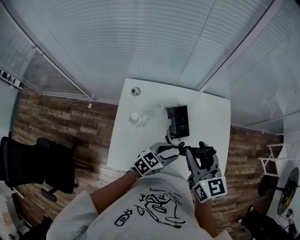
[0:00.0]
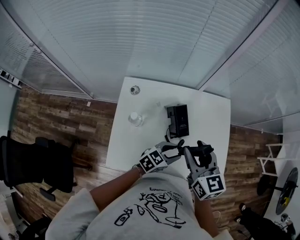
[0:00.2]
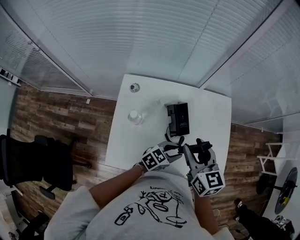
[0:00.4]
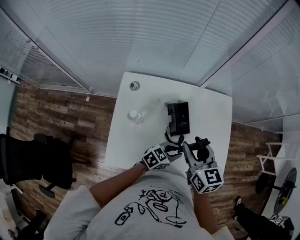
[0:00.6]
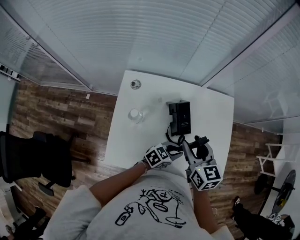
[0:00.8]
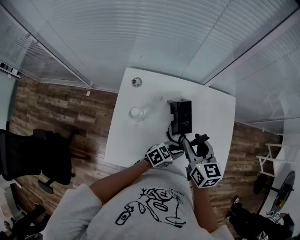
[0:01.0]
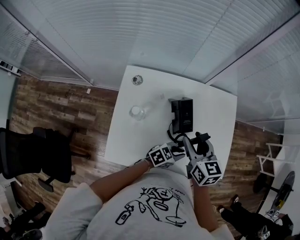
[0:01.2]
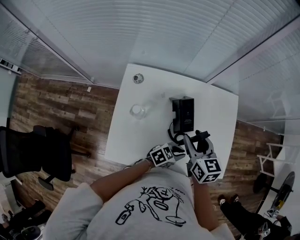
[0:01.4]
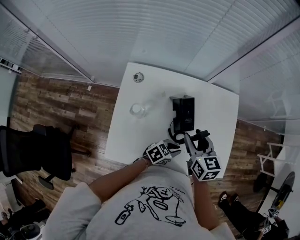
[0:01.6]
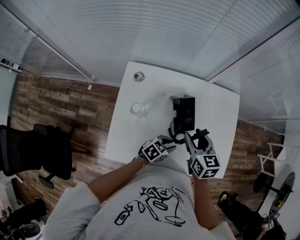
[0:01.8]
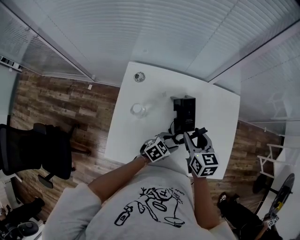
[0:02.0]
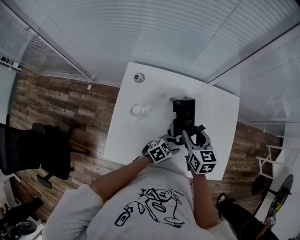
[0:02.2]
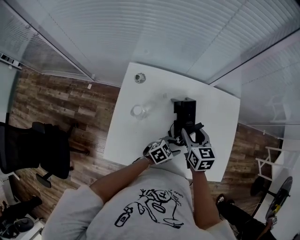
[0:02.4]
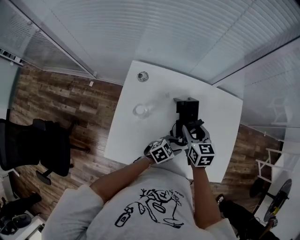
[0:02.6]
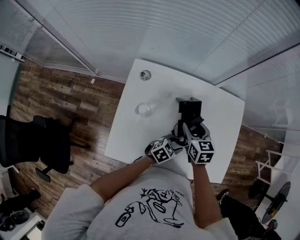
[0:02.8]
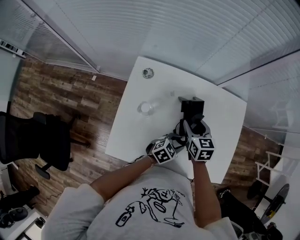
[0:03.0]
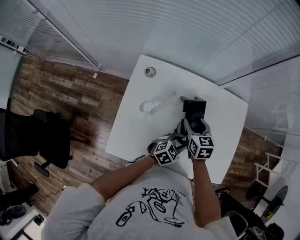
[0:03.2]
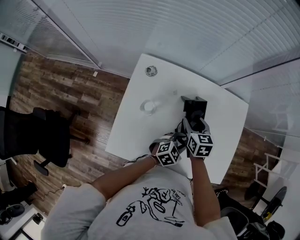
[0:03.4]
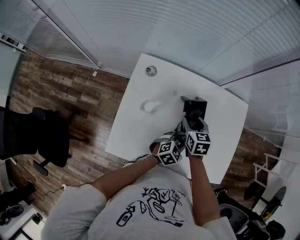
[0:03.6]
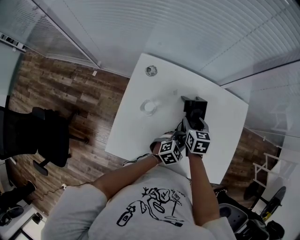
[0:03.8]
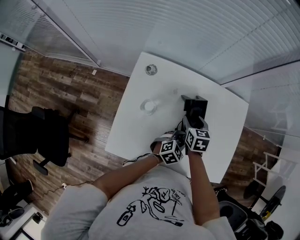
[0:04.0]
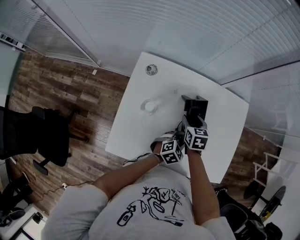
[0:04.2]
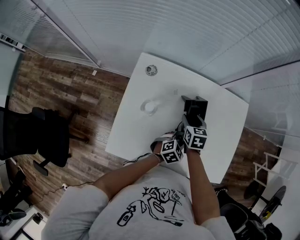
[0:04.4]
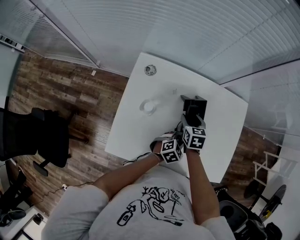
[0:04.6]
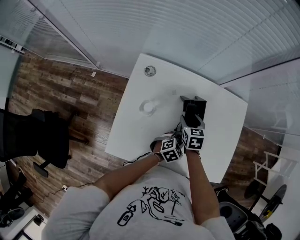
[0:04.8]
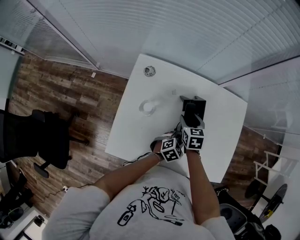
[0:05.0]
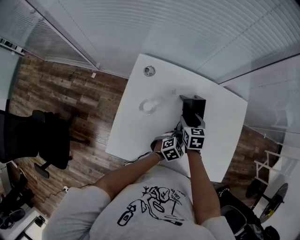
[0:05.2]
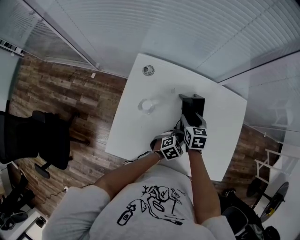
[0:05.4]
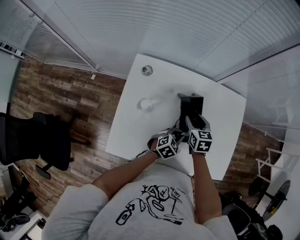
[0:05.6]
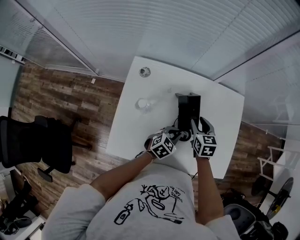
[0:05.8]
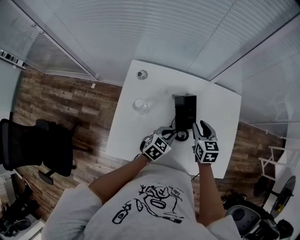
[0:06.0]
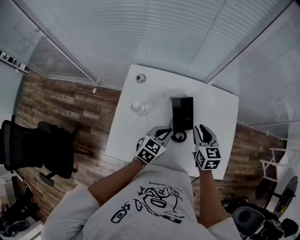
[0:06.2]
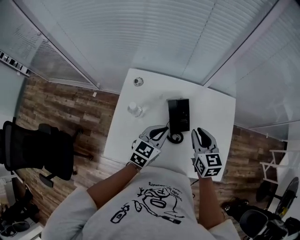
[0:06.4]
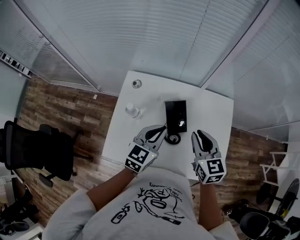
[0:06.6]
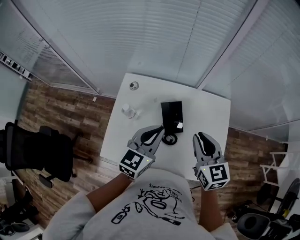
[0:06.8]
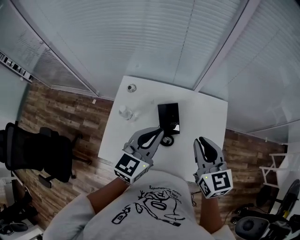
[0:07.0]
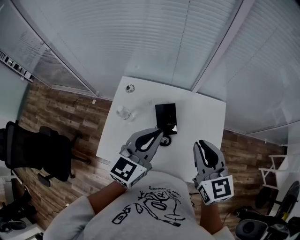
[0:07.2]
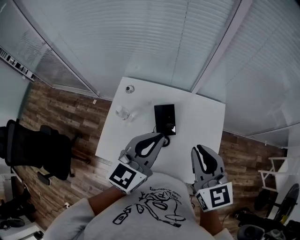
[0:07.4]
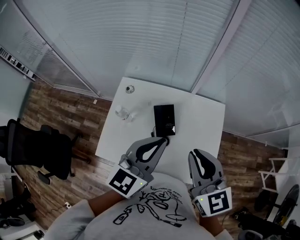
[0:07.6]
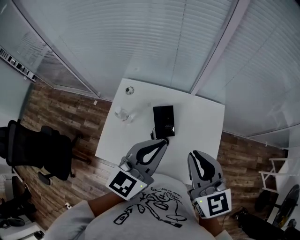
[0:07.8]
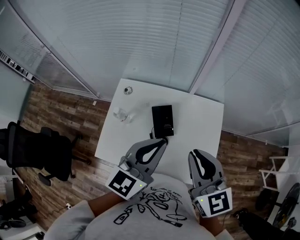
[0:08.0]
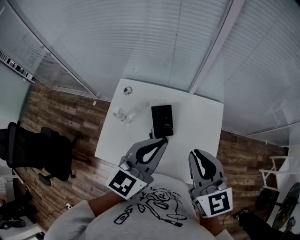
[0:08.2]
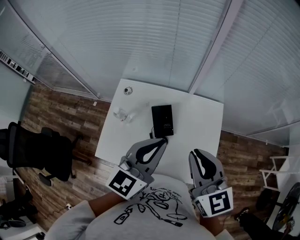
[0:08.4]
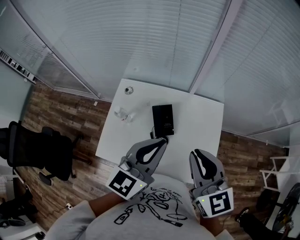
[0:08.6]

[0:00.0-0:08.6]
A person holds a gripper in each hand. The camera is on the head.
0:00.0 to 0:01.4: The left gripper shifts about 10 cm downward and to the right, and closes up, while the right gripper shifts roughly 10 cm downward.
0:01.4 to 0:02.8: The right gripper is displaced downward by approximately 10 cm. The left gripper heads to the left, covering roughly 5 cm, and opens its fingers.
0:02.8 to 0:04.4: The left gripper closes its fingers. The right gripper is displaced downward by about 5 cm.
0:04.4 to 0:05.8: The right gripper moves to the right, approximately 5 cm.
0:05.8 to 0:07.2: Both grippers travel together upward, about 30 cm. The left gripper points its fingers approximately 30 degrees further upward, while the right gripper changes its angle by approximately 30 degrees, and closes its fingers.
0:07.2 to 0:08.6: The grippers both shift upward by some 5 cm.

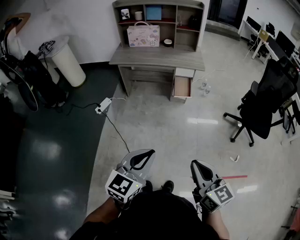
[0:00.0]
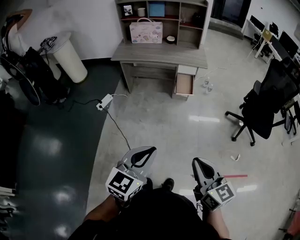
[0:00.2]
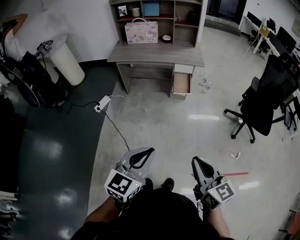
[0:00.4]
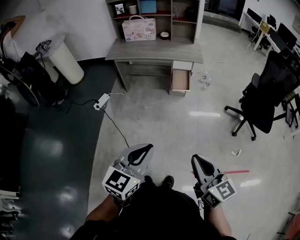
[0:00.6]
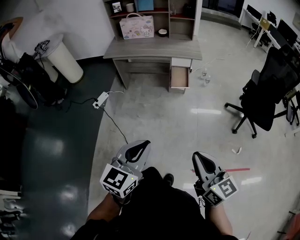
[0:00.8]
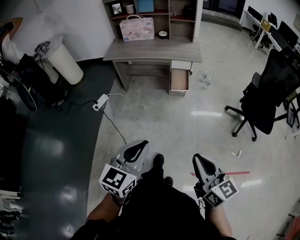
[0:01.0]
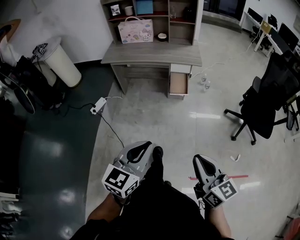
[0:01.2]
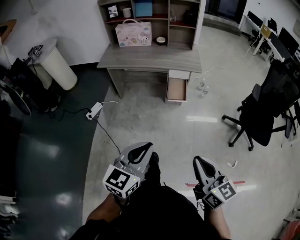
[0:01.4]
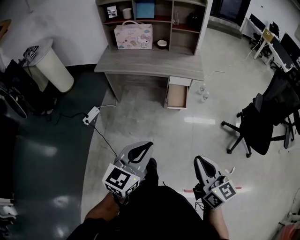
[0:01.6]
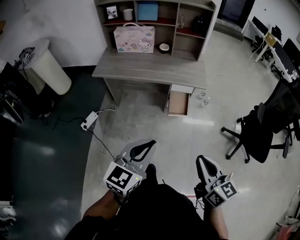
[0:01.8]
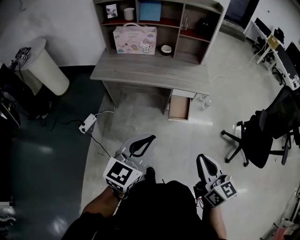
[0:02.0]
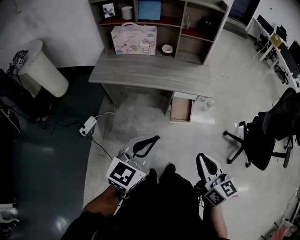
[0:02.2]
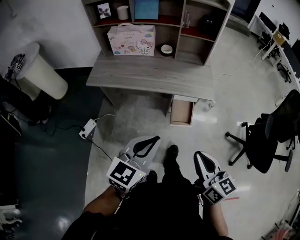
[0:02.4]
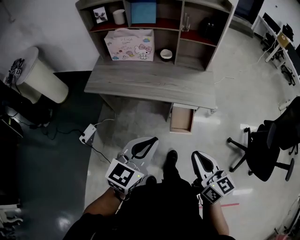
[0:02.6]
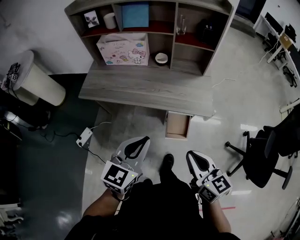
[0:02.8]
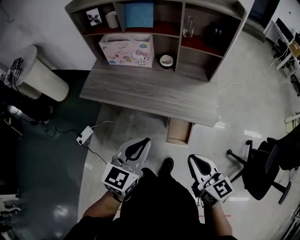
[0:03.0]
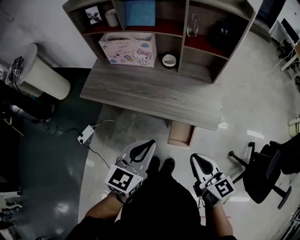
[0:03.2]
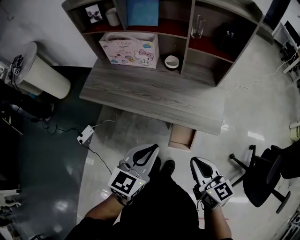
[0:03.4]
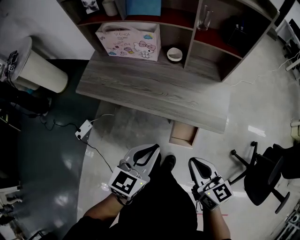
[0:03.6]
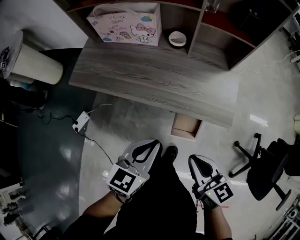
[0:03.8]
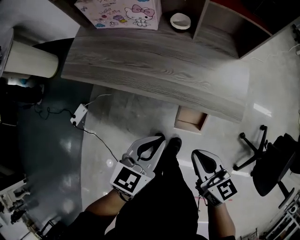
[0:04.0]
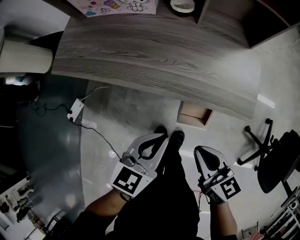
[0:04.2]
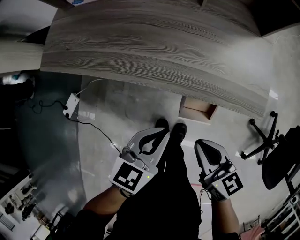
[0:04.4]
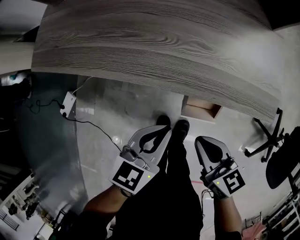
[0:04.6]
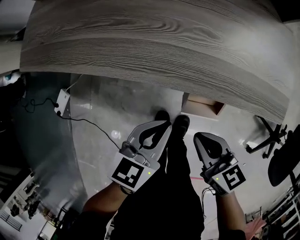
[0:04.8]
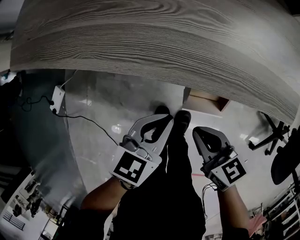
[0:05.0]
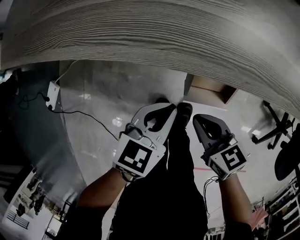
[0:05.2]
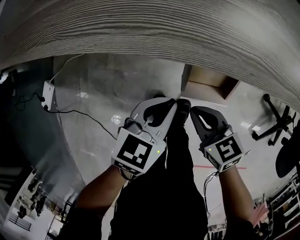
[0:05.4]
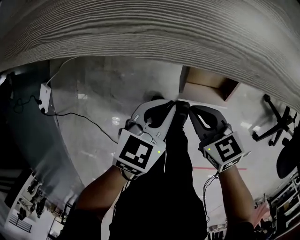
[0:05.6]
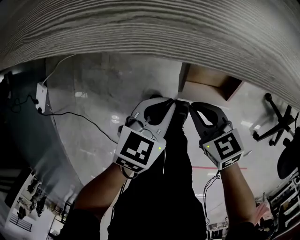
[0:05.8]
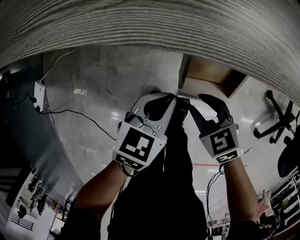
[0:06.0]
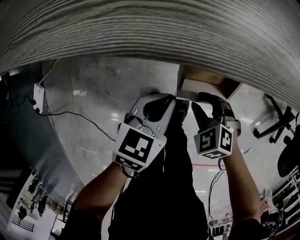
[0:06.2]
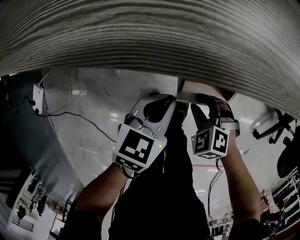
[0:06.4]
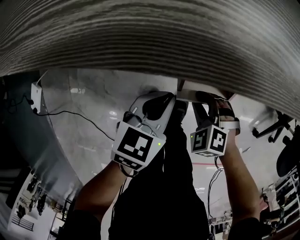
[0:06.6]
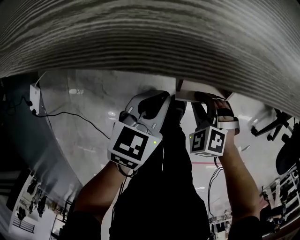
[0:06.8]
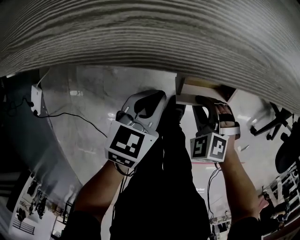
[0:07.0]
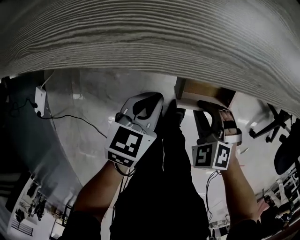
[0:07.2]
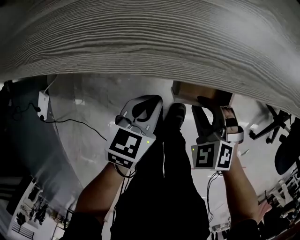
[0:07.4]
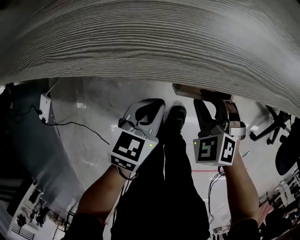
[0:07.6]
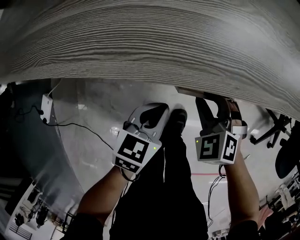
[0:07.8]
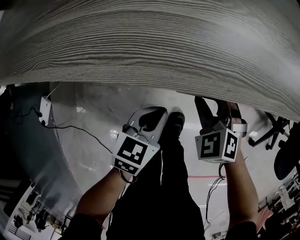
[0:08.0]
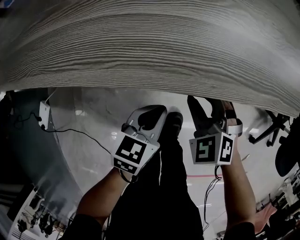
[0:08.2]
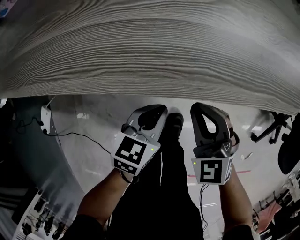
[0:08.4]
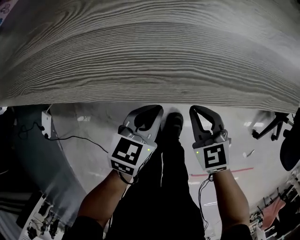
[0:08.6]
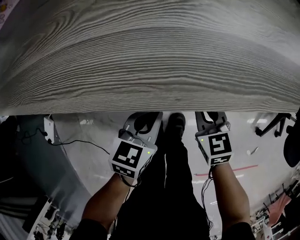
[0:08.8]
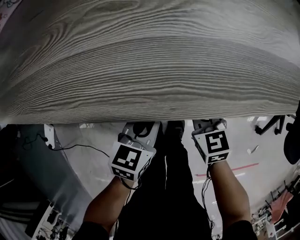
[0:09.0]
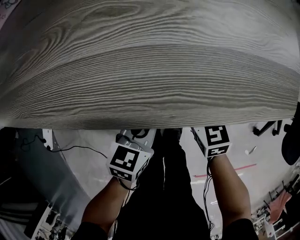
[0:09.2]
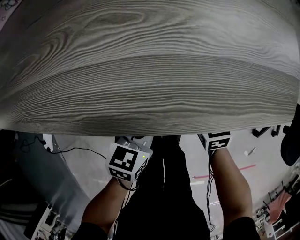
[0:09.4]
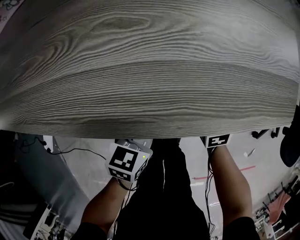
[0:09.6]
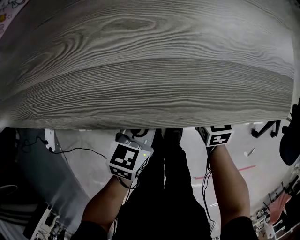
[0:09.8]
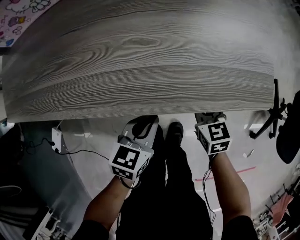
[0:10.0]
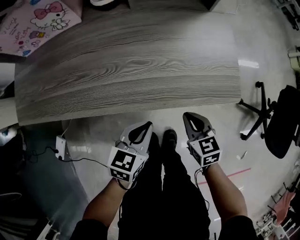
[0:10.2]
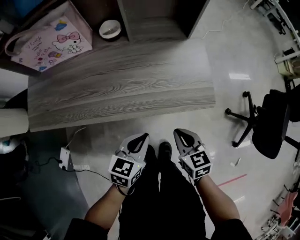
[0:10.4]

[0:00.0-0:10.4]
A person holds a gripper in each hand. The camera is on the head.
0:00.0 to 0:01.4: The right gripper travels forward and to the right by some 15 cm. The left gripper heads forward, covering some 15 cm.
0:01.4 to 0:03.0: Both grippers are carried forward, roughly 50 cm.
0:03.0 to 0:04.4: The left gripper is displaced downward by roughly 30 cm, and turns by about 20 degrees. Meanwhile the right gripper heads downward and forward, covering about 30 cm.
0:04.4 to 0:06.0: Both grippers move downward, roughly 30 cm. The right gripper swivels about 30 degrees, and opens up.
0:06.0 to 0:07.4: The right gripper shifts roughly 5 cm upward, and changes its angle by about 30 degrees; the left gripper moves about 5 cm.
0:07.4 to 0:09.0: The left gripper is displaced to the right by some 5 cm, while the right gripper travels forward and to the right by some 5 cm, rolls clockwise, seen from behind, by approximately 50 degrees, and closes up.
0:09.0 to 0:10.4: The grippers both shift upward by roughly 25 cm.

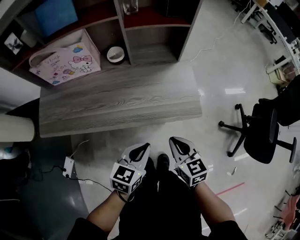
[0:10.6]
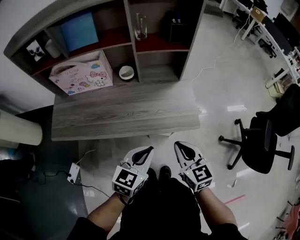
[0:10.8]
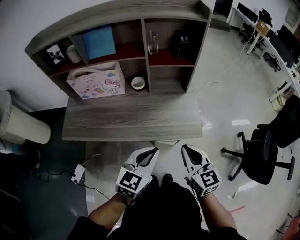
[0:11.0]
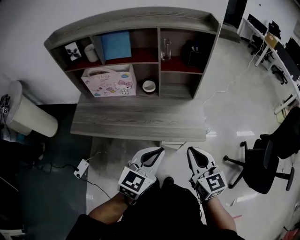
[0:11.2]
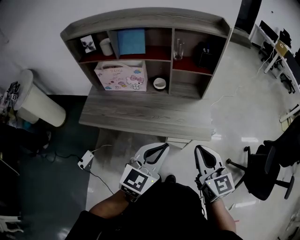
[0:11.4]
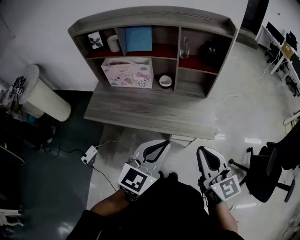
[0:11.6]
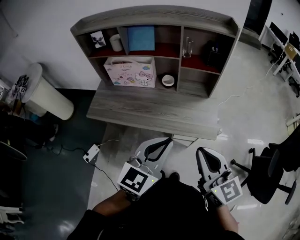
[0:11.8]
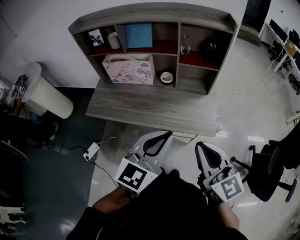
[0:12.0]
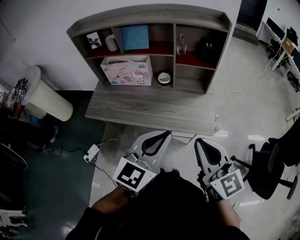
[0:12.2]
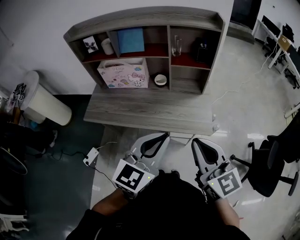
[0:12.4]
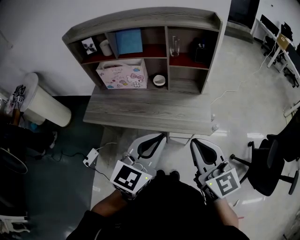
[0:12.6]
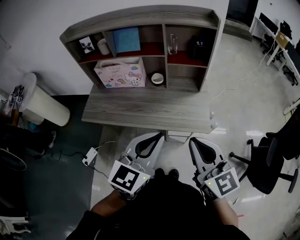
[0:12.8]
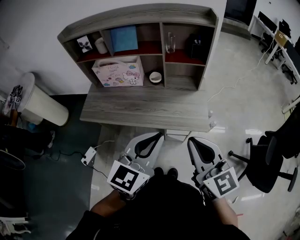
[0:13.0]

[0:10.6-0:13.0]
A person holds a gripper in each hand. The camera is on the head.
0:10.6 to 0:11.8: The grippers both shift upward by about 30 cm. The left gripper changes its angle by roughly 30 degrees. Meanwhile the right gripper rotates some 30 degrees.
0:11.8 to 0:13.0: The grippers make only small movements.

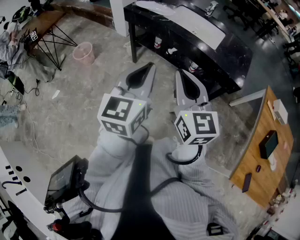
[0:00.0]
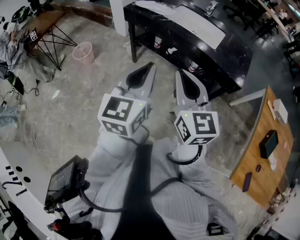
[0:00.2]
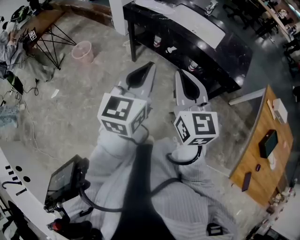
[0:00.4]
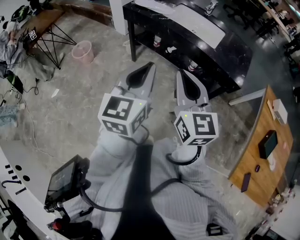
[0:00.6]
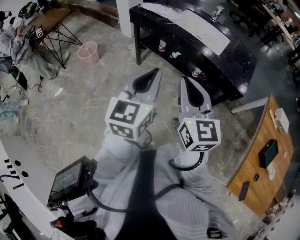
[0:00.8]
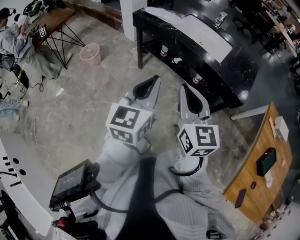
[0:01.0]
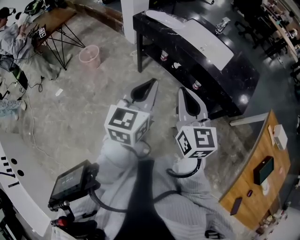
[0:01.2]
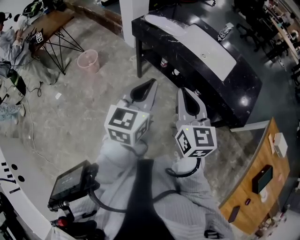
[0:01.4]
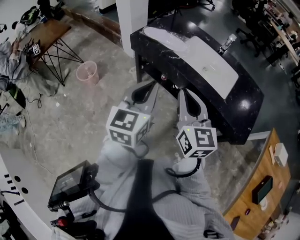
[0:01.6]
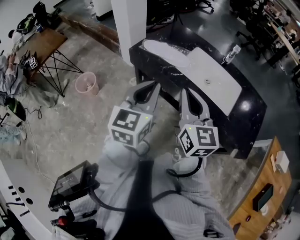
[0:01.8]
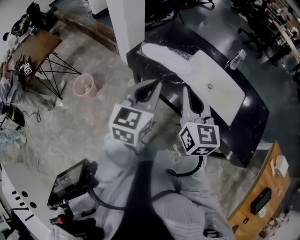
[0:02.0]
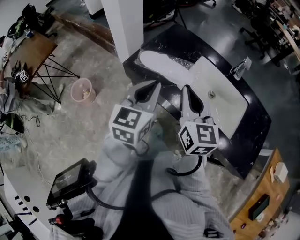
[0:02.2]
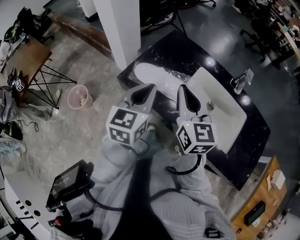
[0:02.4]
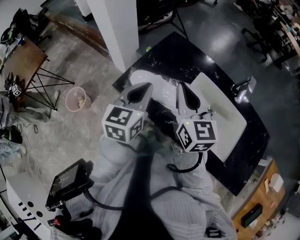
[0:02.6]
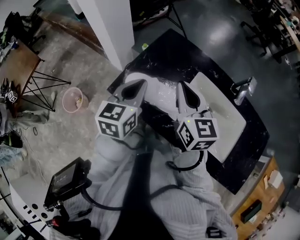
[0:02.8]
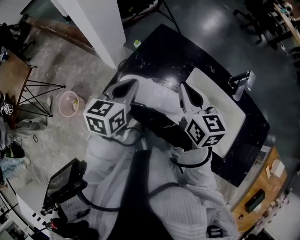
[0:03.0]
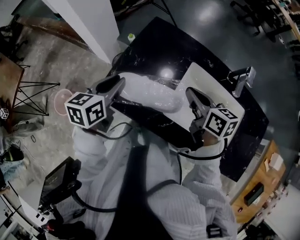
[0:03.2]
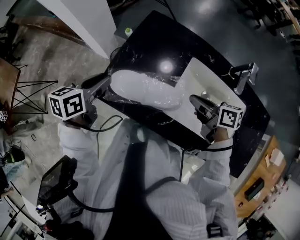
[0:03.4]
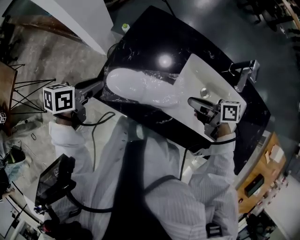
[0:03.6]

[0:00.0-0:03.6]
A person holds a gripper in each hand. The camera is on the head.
0:00.0 to 0:01.8: The two grippers go approximately 35 cm forward.
0:01.8 to 0:03.6: The two grippers go roughly 40 cm forward and downward. The right gripper rotates about 70 degrees, while the left gripper tilts its fingers approximately 30 degrees downward, and opens.
